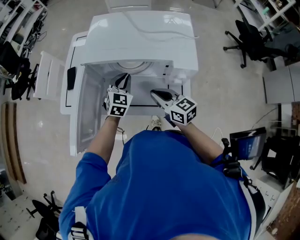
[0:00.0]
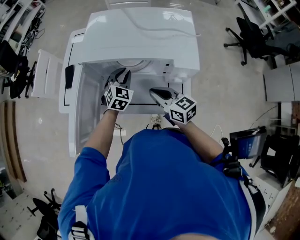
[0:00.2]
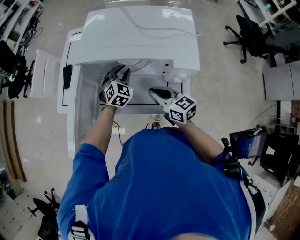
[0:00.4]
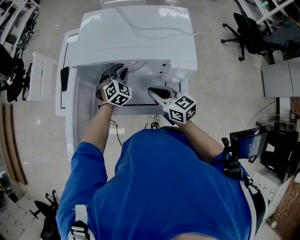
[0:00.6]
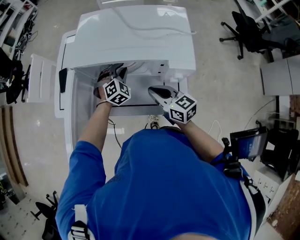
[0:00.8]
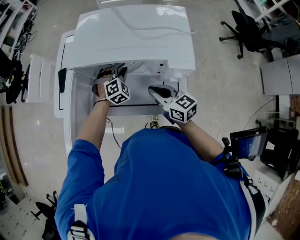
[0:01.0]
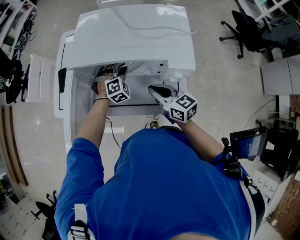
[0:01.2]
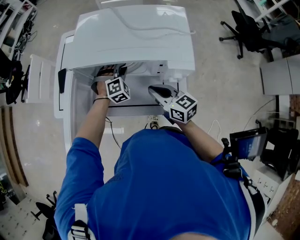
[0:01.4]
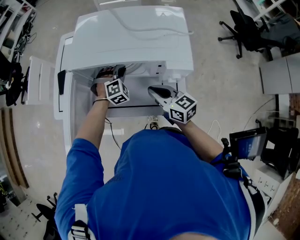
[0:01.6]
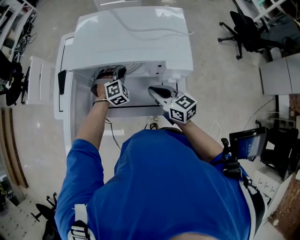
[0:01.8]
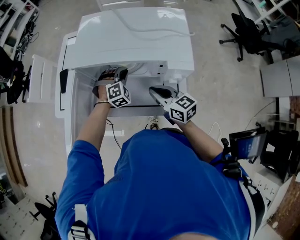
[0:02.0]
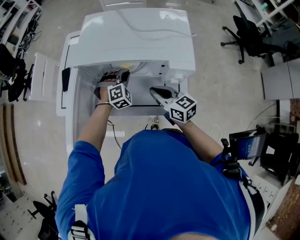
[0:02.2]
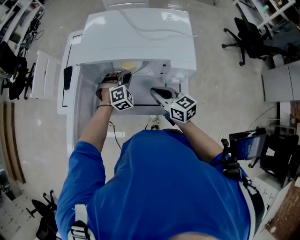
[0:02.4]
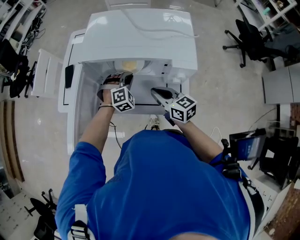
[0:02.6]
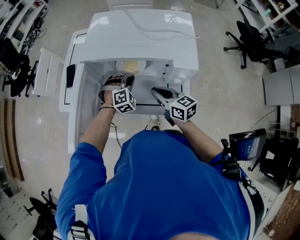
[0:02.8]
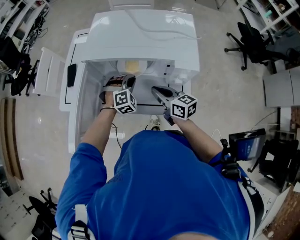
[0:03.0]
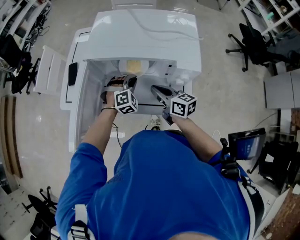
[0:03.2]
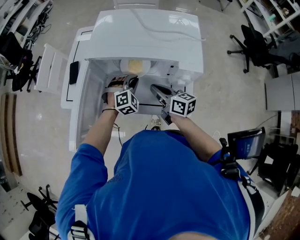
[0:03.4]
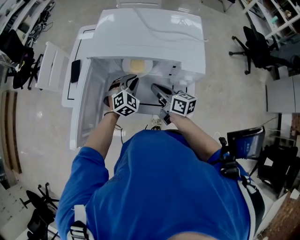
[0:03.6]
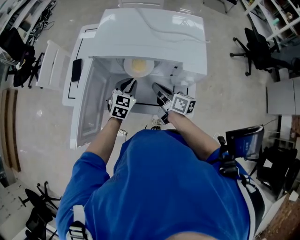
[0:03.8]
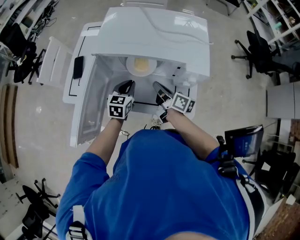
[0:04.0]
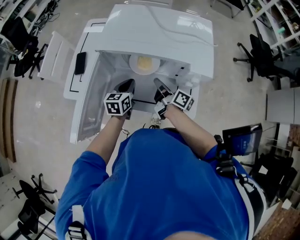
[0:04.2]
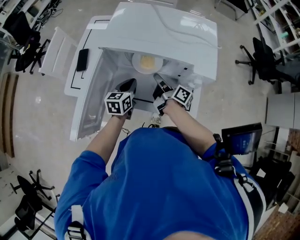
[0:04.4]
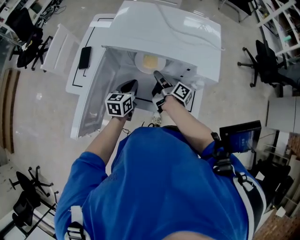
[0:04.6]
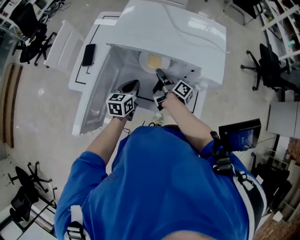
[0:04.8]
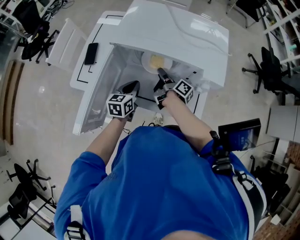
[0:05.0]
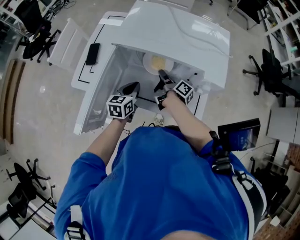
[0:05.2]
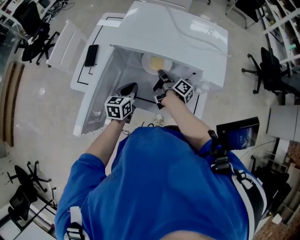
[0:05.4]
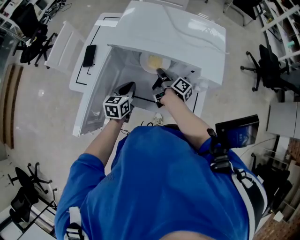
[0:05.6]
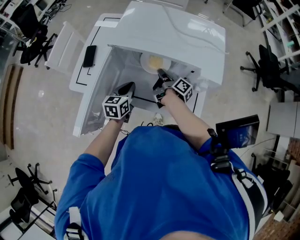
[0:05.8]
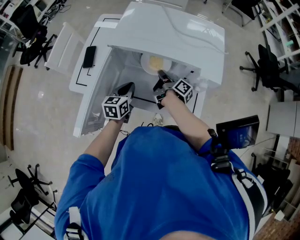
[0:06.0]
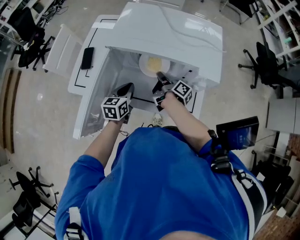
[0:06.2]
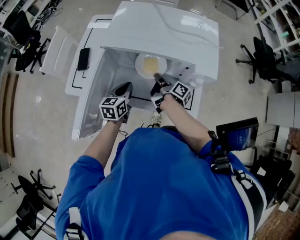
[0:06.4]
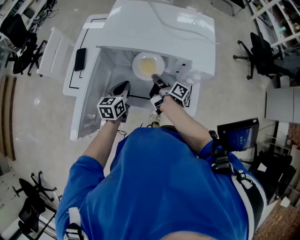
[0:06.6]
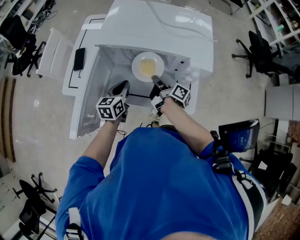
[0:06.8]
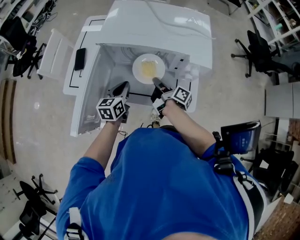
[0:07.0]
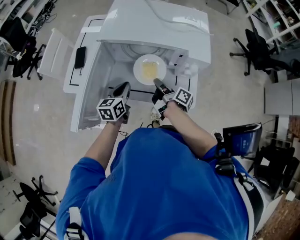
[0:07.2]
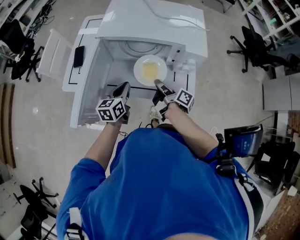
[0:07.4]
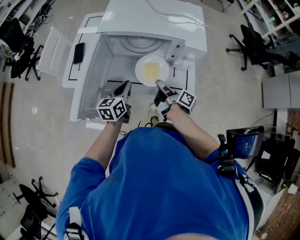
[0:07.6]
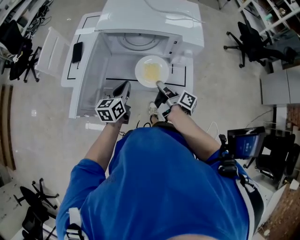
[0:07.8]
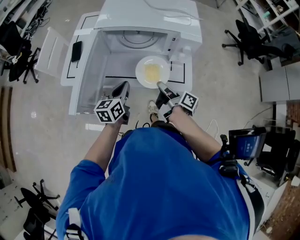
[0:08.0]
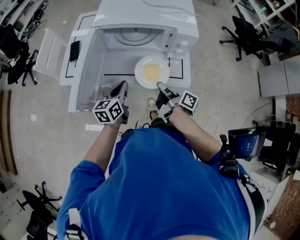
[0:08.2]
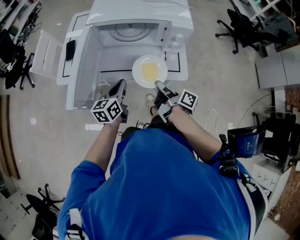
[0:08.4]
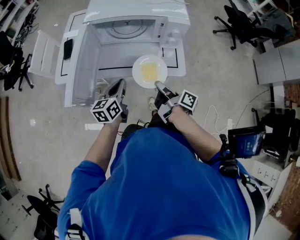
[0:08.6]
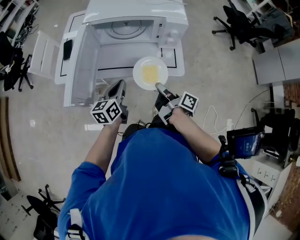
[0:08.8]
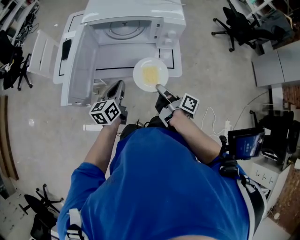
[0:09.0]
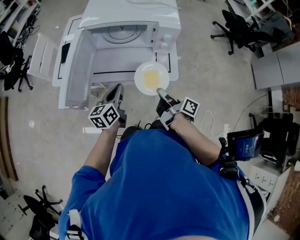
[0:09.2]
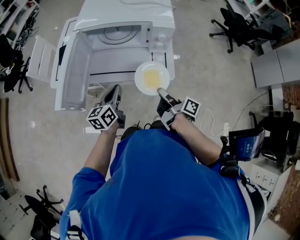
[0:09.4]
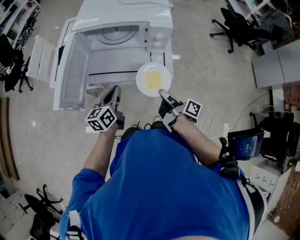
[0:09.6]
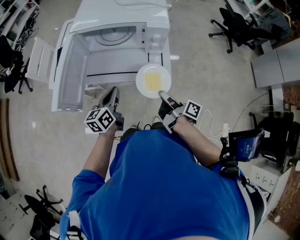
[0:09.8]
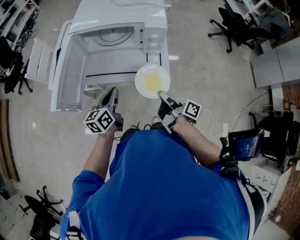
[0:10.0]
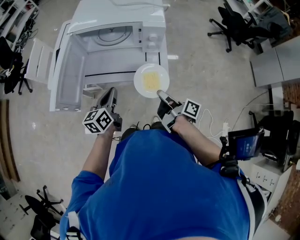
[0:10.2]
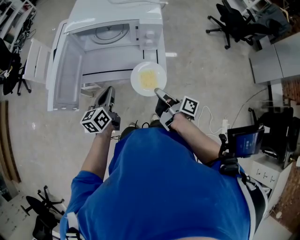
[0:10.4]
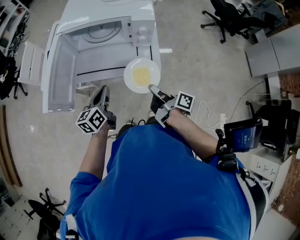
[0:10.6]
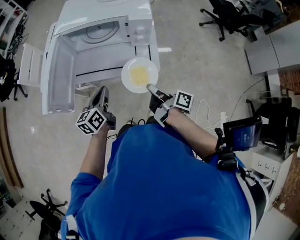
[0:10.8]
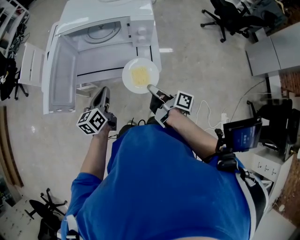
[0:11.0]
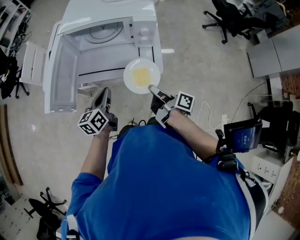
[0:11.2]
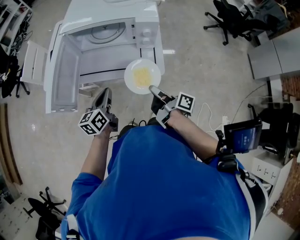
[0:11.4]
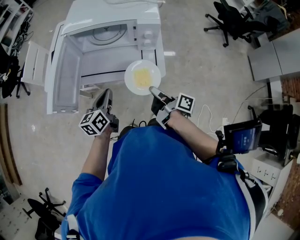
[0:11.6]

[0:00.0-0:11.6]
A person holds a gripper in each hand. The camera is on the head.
0.0 to 1.4 s: The left gripper heads downward, covering some 5 cm, and rolls clockwise, seen from behind, by roughly 50 degrees.
1.4 to 2.8 s: The left gripper goes about 5 cm backward.
2.8 to 4.4 s: The left gripper shifts about 10 cm to the left, and rolls counterclockwise, seen from behind, by some 80 degrees, while the right gripper shifts approximately 10 cm forward, rotates around the line of its fingers by some 50 degrees, clockwise from behind, and opens.
4.4 to 5.8 s: The grippers make only small movements.
5.8 to 7.2 s: The right gripper shifts approximately 10 cm backward.
7.2 to 8.8 s: Both grippers move backward, some 15 cm.
8.8 to 10.2 s: The left gripper moves roughly 5 cm, while the right gripper shifts roughly 10 cm to the right.
10.2 to 11.6 s: The grippers make only small movements.

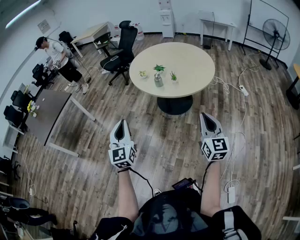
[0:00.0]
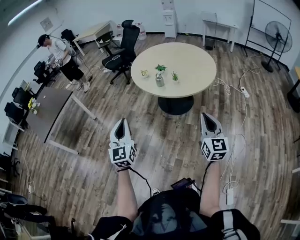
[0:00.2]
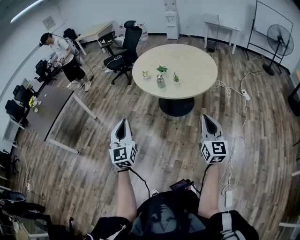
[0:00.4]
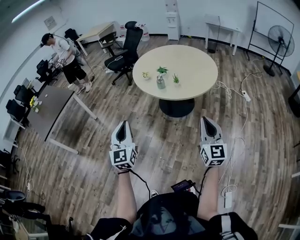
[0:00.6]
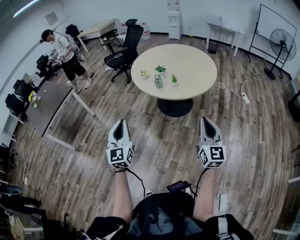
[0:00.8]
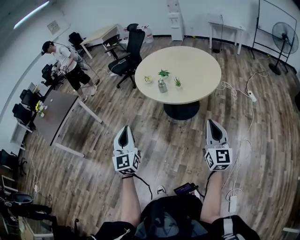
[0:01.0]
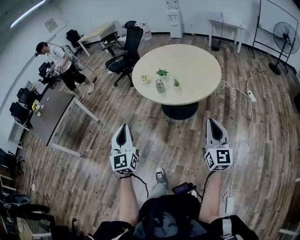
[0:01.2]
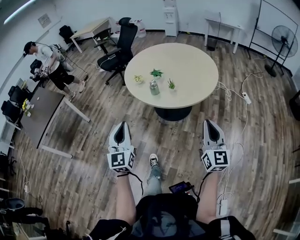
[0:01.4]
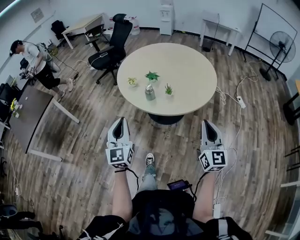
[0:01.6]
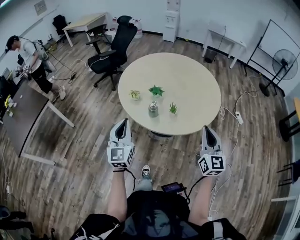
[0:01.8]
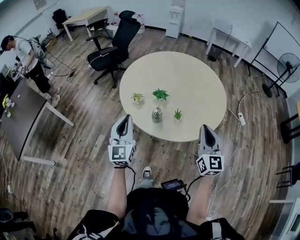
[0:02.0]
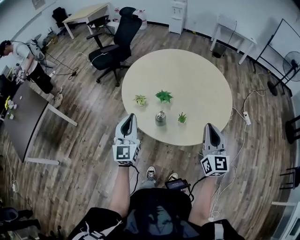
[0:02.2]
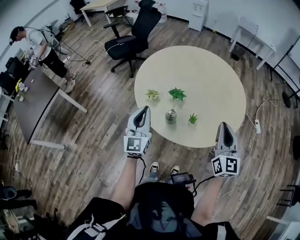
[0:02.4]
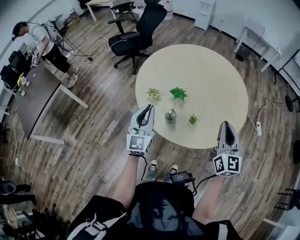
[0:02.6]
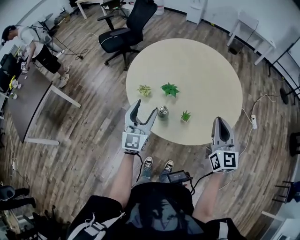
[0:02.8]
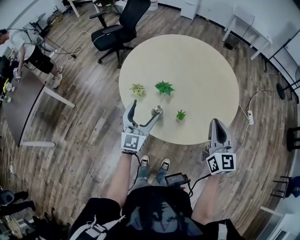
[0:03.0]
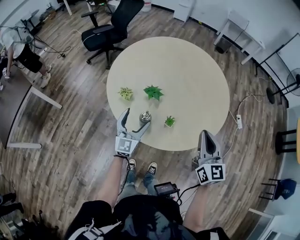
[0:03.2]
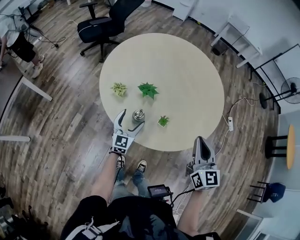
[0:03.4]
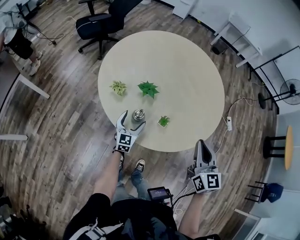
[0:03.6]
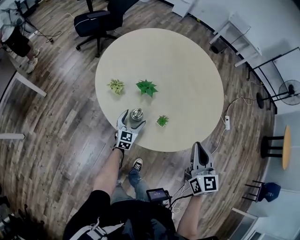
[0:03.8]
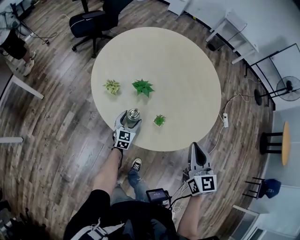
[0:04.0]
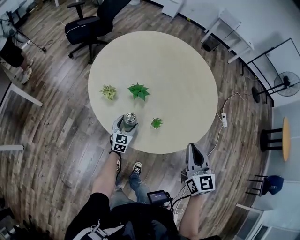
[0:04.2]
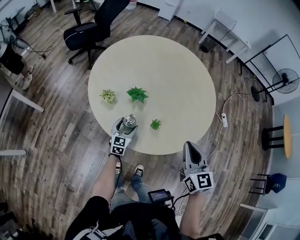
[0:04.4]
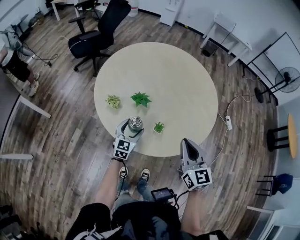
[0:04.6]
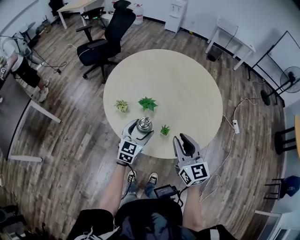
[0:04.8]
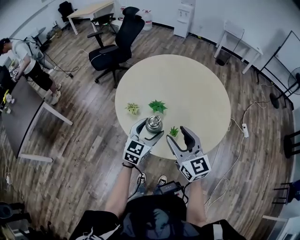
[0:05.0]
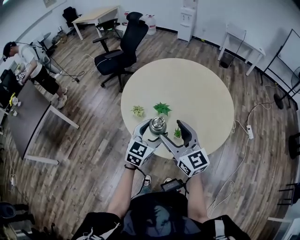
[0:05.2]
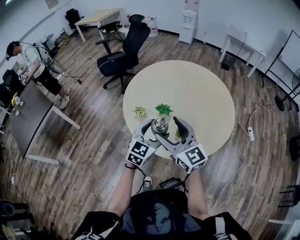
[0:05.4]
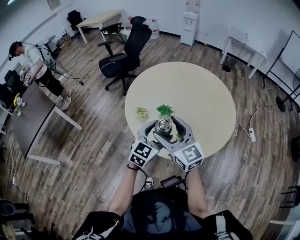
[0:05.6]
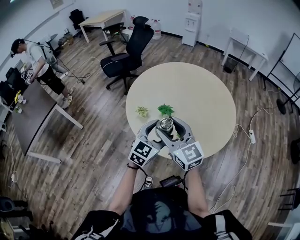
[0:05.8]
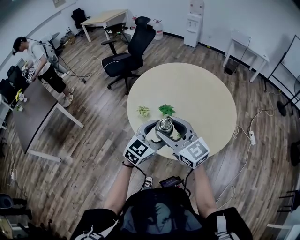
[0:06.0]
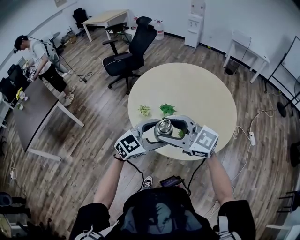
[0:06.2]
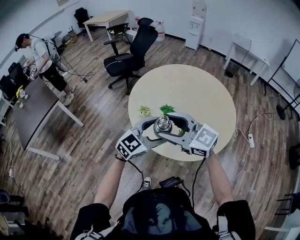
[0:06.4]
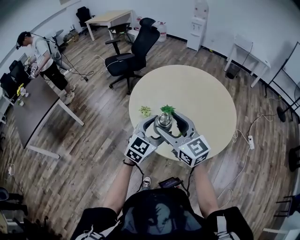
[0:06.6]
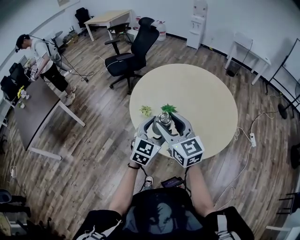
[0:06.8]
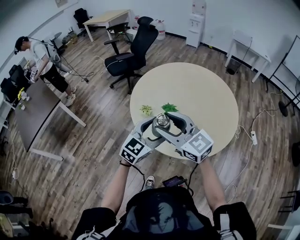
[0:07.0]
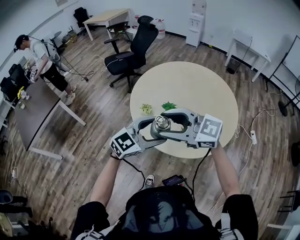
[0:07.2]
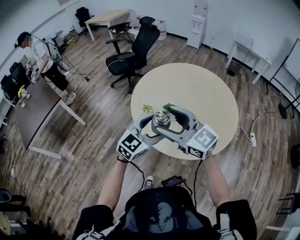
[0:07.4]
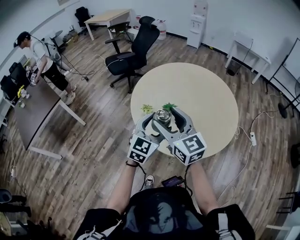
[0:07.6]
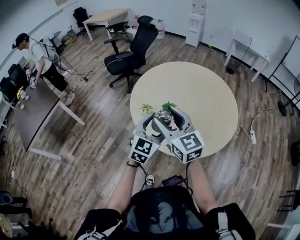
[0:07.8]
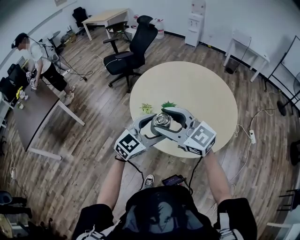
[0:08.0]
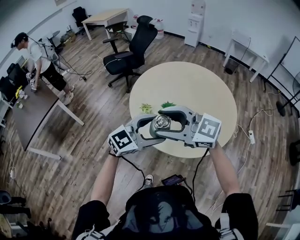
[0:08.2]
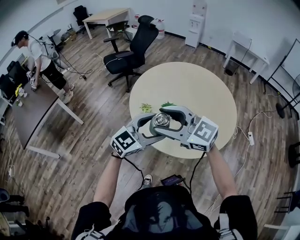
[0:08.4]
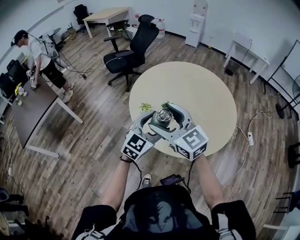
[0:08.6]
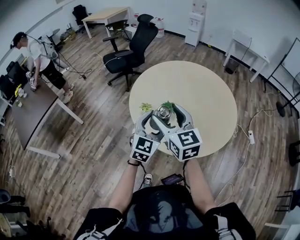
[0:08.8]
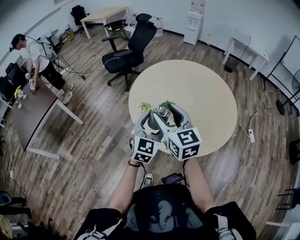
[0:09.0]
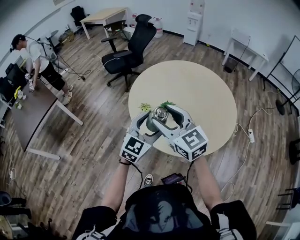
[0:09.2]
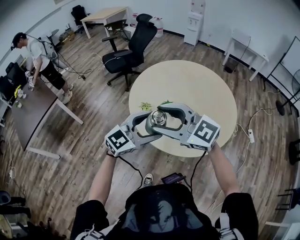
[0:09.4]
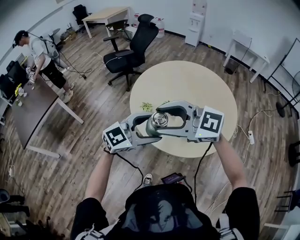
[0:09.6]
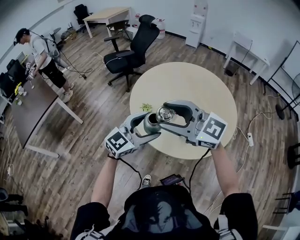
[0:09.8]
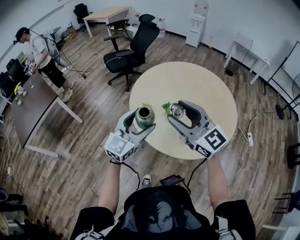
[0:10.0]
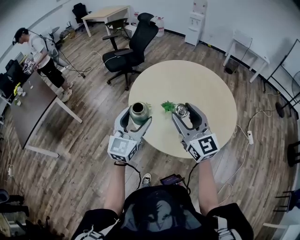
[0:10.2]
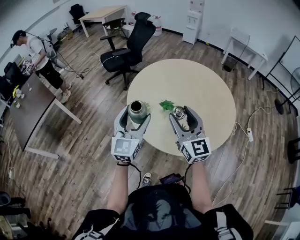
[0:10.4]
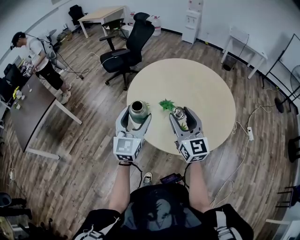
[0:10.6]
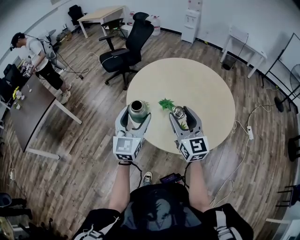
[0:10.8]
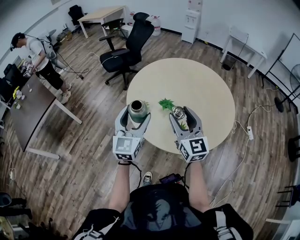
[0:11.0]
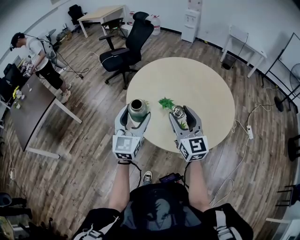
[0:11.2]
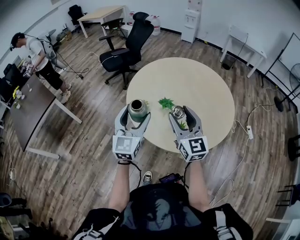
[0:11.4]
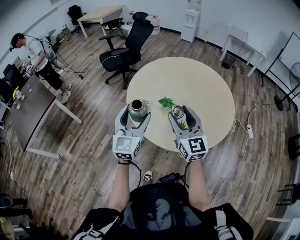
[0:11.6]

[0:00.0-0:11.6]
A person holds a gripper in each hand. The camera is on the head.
0.0 to 1.4 s: The grippers both shift forward and to the right by some 15 cm.
1.4 to 2.8 s: Both grippers travel together forward, about 40 cm. The left gripper opens.
2.8 to 4.4 s: The right gripper moves downward, some 10 cm, while the left gripper goes about 30 cm downward, and swivels roughly 30 degrees.
4.4 to 5.8 s: The right gripper travels to the left and upward by about 20 cm, rotates approximately 30 degrees, and opens up, while the left gripper heads upward, covering approximately 30 cm.
5.8 to 7.2 s: The right gripper travels upward by about 5 cm, and changes its angle by roughly 40 degrees; the left gripper changes place by about 10 cm, and turns by approximately 20 degrees.
7.2 to 8.8 s: The left gripper shifts by some 5 cm, and swivels roughly 30 degrees. Meanwhile the right gripper changes place by approximately 10 cm, and rotates roughly 50 degrees.
8.8 to 10.2 s: The left gripper moves approximately 10 cm.
10.2 to 11.6 s: There are only small adjustments of the grippers.

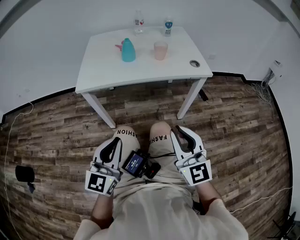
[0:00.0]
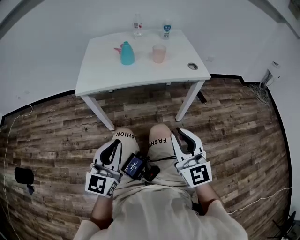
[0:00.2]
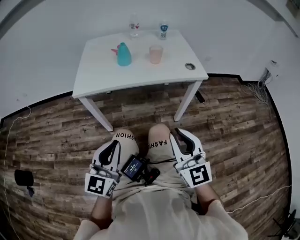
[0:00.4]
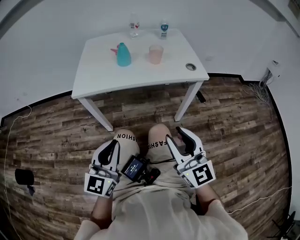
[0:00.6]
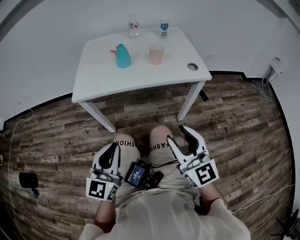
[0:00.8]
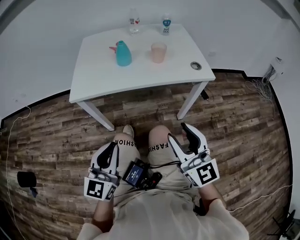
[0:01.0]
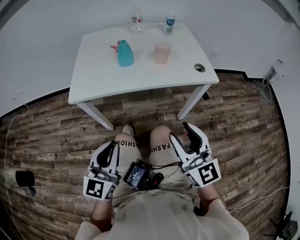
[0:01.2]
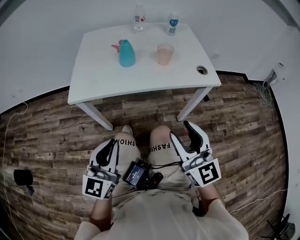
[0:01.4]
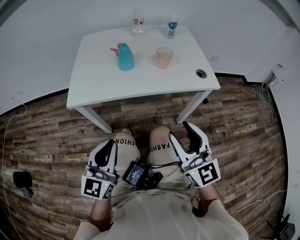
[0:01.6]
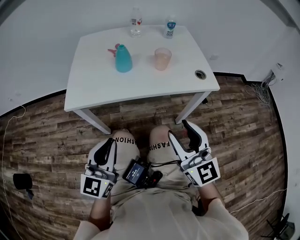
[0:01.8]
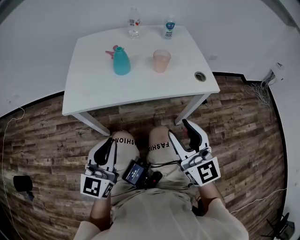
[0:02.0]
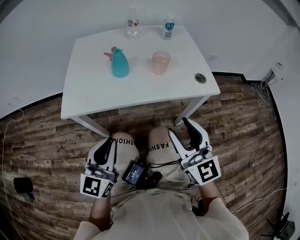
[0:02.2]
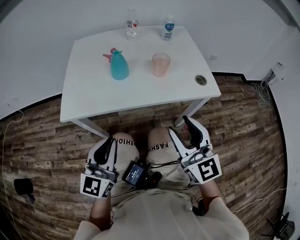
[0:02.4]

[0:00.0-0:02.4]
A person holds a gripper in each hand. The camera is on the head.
0.0 to 1.2 s: The two grippers go roughly 10 cm forward.
1.2 to 2.4 s: Both grippers travel together forward, roughly 10 cm.
